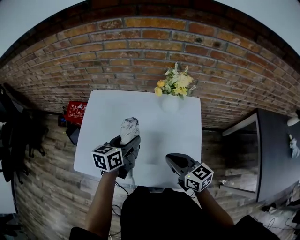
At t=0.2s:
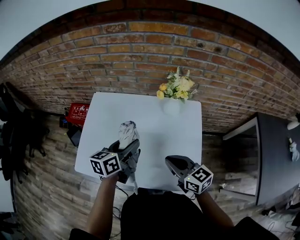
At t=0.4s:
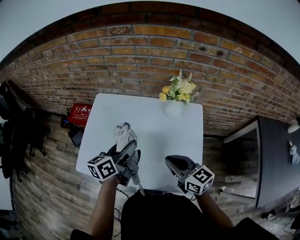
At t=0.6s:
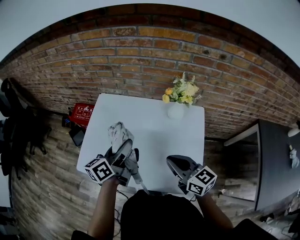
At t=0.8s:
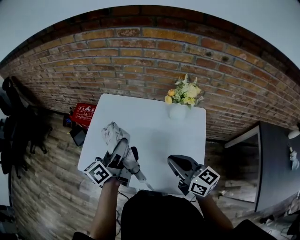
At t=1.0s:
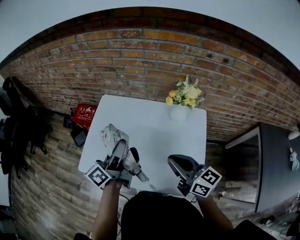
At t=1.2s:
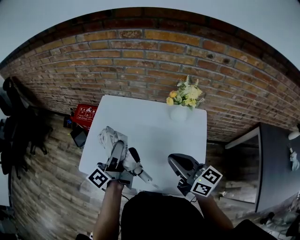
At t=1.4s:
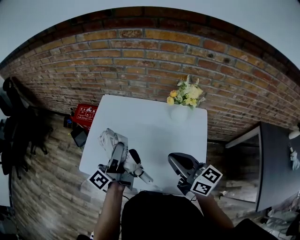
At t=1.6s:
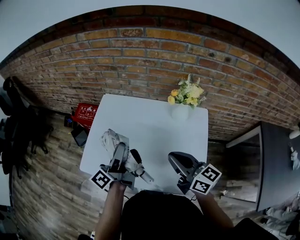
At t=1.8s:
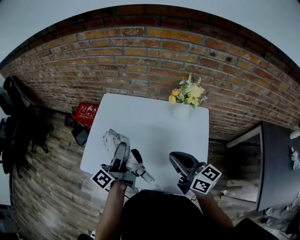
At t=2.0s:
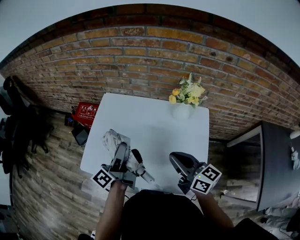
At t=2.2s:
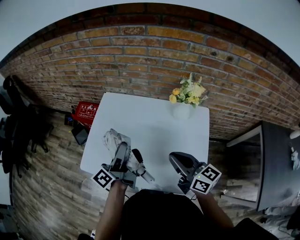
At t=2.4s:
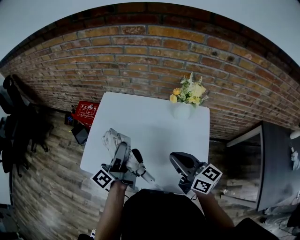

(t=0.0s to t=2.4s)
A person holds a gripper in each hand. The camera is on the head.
t=0.0s - t=1.2s: The right gripper moves upward, approximately 10 cm. Meanwhile the left gripper goes approximately 15 cm to the left and upward, and tilts its fingers some 40 degrees upward.
t=1.2s - t=2.4s: The grippers stay close to where they were, moving slightly.

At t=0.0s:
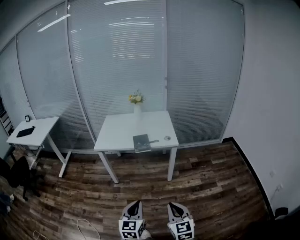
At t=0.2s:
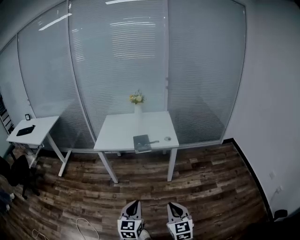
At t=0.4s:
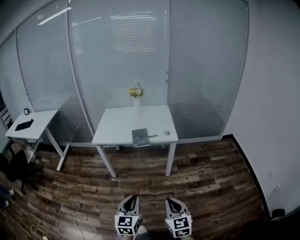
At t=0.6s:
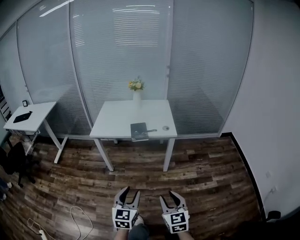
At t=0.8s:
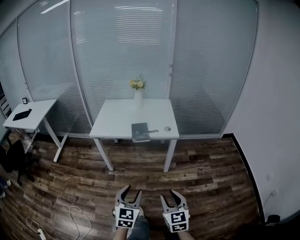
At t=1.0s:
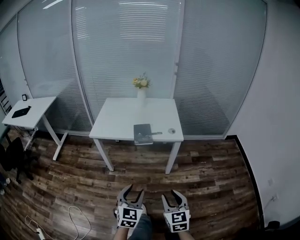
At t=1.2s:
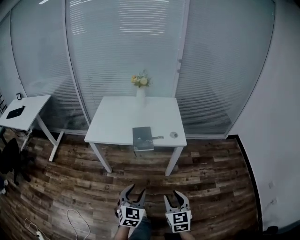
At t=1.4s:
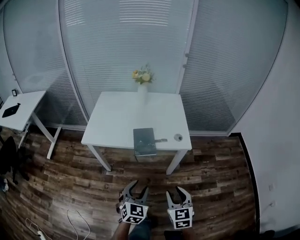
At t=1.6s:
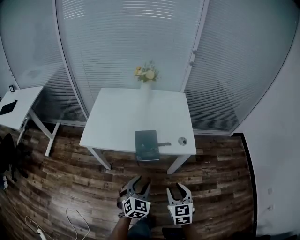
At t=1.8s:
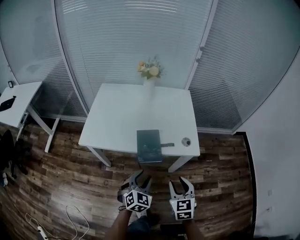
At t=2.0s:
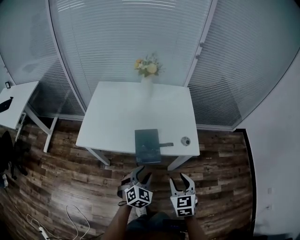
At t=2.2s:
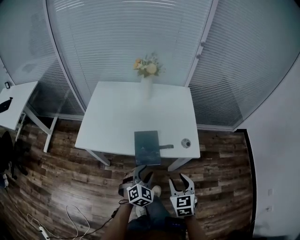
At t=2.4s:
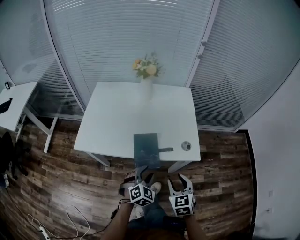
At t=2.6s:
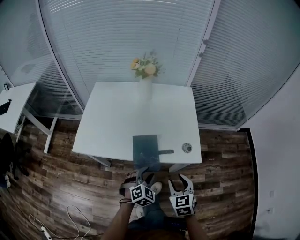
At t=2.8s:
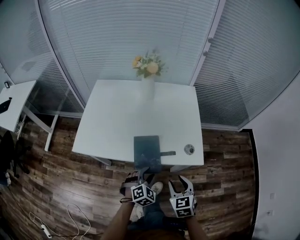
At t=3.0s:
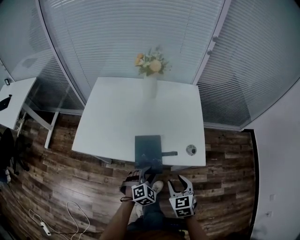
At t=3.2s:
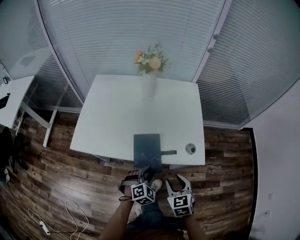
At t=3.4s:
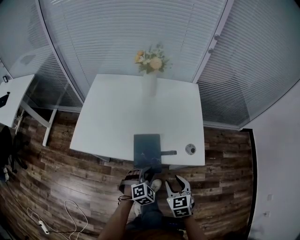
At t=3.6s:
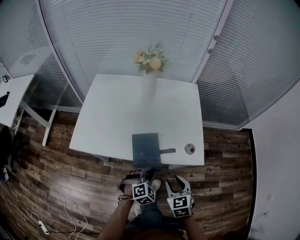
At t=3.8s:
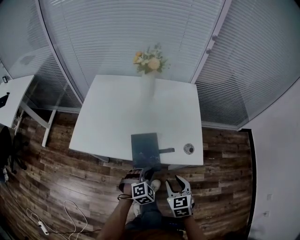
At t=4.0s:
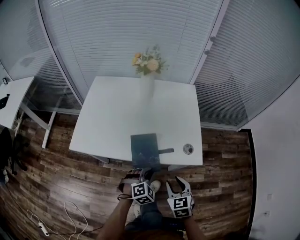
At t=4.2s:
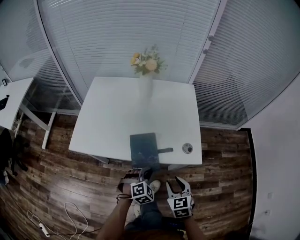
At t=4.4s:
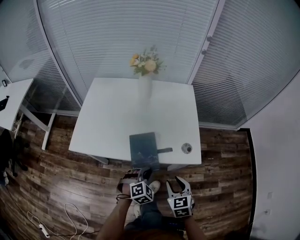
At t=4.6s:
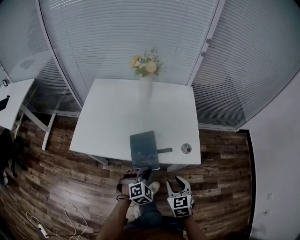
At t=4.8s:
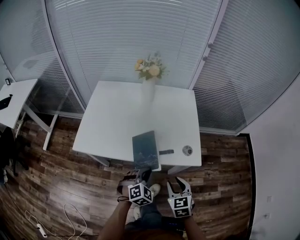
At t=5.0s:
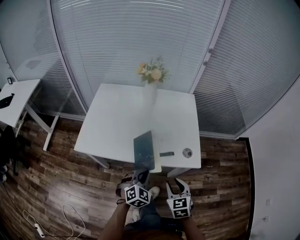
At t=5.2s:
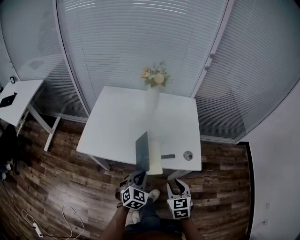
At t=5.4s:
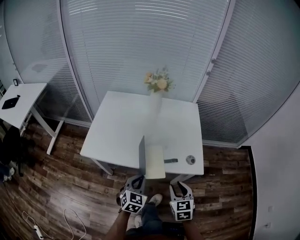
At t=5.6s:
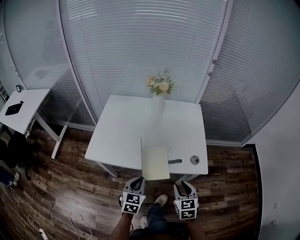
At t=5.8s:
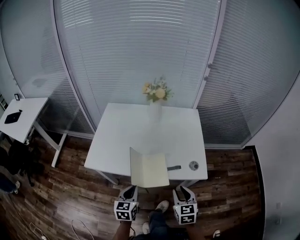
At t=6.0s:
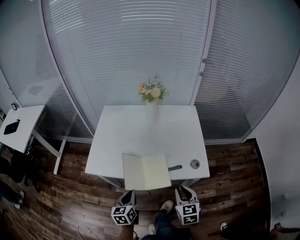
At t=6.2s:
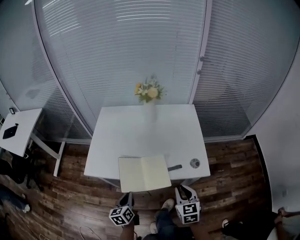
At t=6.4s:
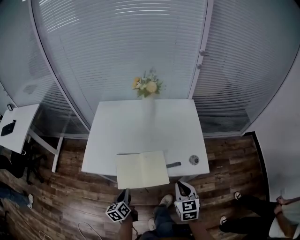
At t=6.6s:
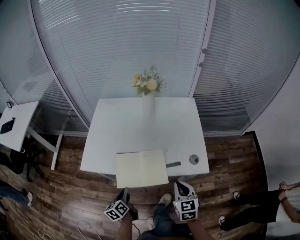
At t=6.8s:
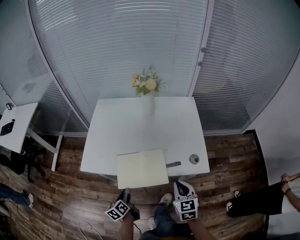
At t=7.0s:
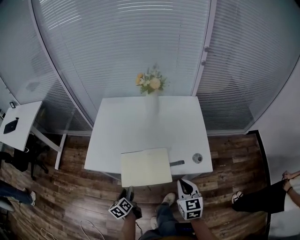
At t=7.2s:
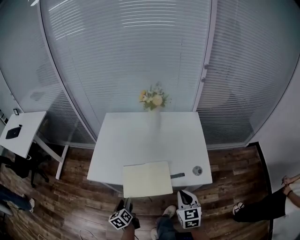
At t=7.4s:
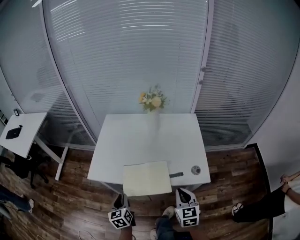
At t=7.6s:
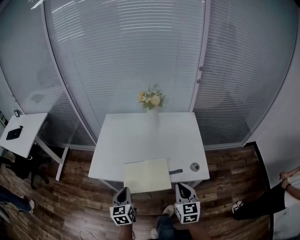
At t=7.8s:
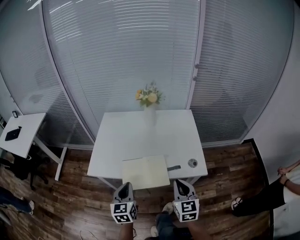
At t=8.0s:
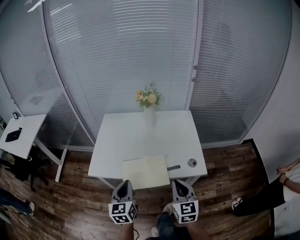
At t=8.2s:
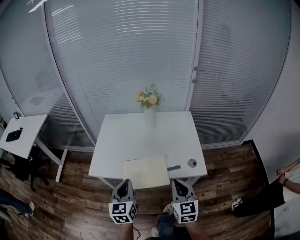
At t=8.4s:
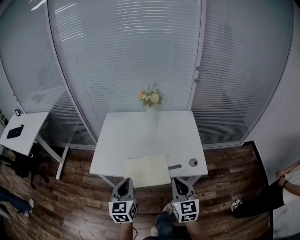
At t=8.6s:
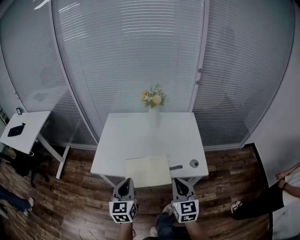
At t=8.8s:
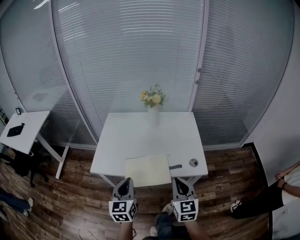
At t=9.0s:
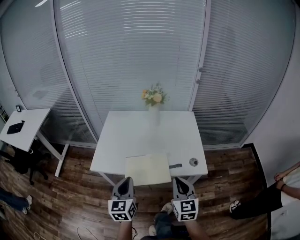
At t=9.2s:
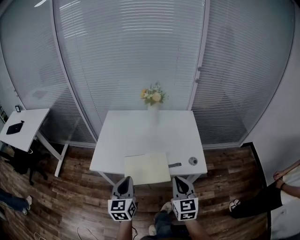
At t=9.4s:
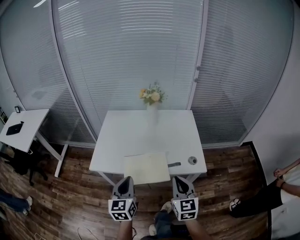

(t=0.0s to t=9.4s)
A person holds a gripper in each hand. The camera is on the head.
t=0.0s - t=1.6s: The two grippers go about 35 cm forward. The right gripper opens. The left gripper changes its angle by some 30 degrees, and opens up.
t=1.6s - t=3.2s: The two grippers go about 20 cm forward and downward. The left gripper turns by roughly 20 degrees.
t=3.2s - t=4.8s: The left gripper travels upward by approximately 5 cm, and closes.
t=4.8s - t=6.2s: The left gripper is displaced to the left by about 20 cm, and rolls counterclockwise, seen from behind, by approximately 70 degrees.
t=6.2s - t=7.8s: The right gripper goes some 10 cm upward, while the left gripper moves upward, approximately 15 cm, rotates about 20 degrees, and opens, then closes again.
t=7.8s - t=9.4s: The left gripper is displaced upward by approximately 5 cm.

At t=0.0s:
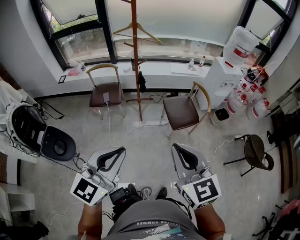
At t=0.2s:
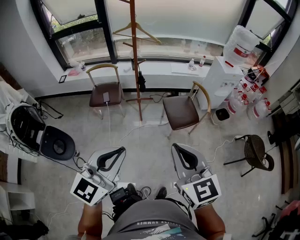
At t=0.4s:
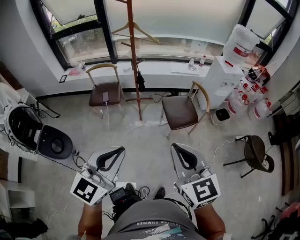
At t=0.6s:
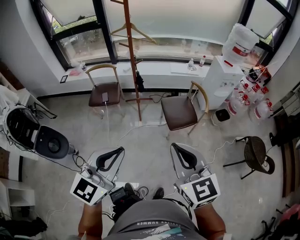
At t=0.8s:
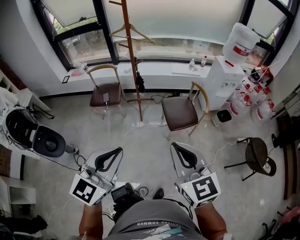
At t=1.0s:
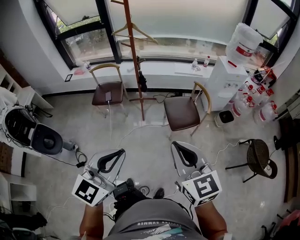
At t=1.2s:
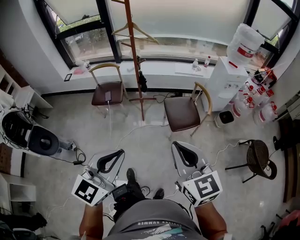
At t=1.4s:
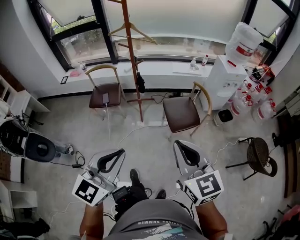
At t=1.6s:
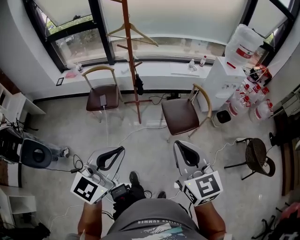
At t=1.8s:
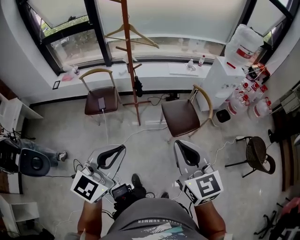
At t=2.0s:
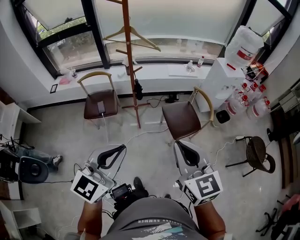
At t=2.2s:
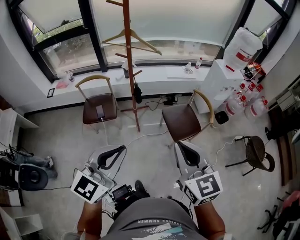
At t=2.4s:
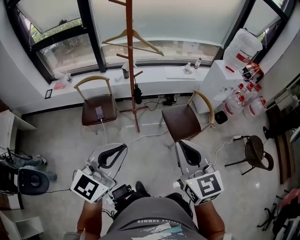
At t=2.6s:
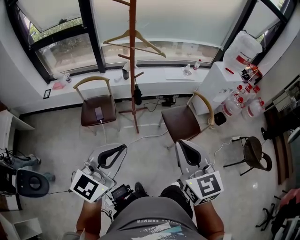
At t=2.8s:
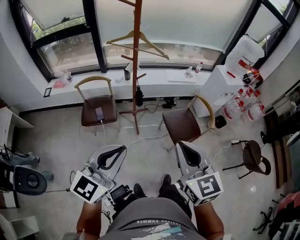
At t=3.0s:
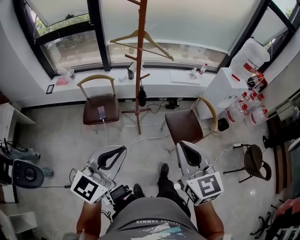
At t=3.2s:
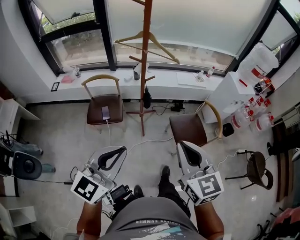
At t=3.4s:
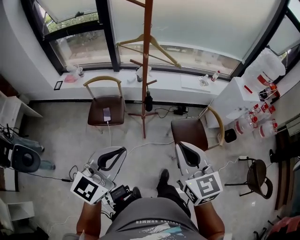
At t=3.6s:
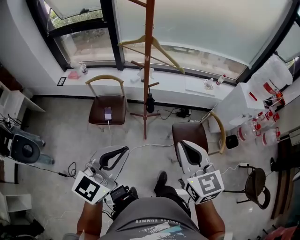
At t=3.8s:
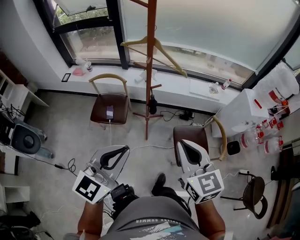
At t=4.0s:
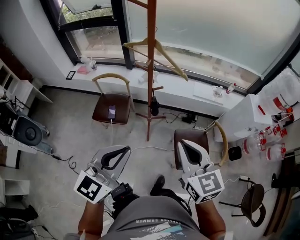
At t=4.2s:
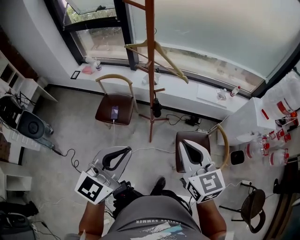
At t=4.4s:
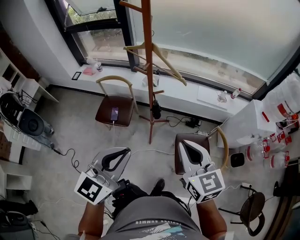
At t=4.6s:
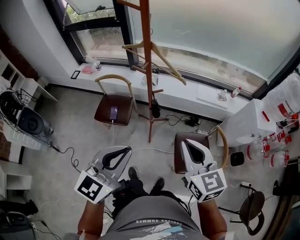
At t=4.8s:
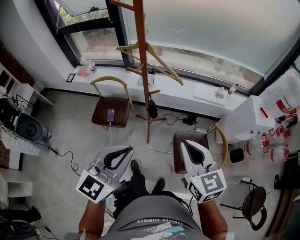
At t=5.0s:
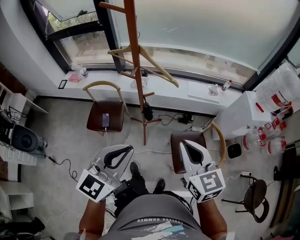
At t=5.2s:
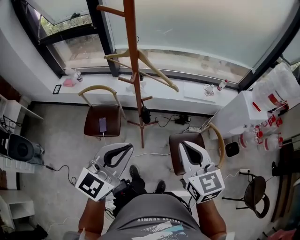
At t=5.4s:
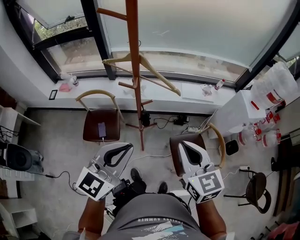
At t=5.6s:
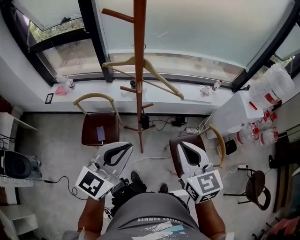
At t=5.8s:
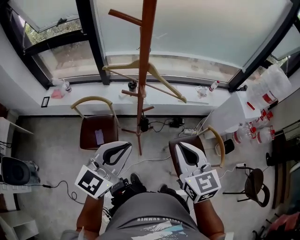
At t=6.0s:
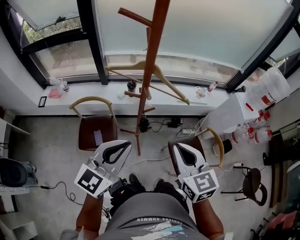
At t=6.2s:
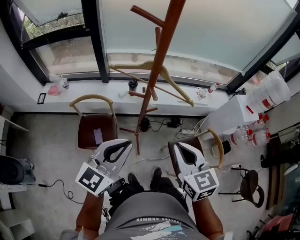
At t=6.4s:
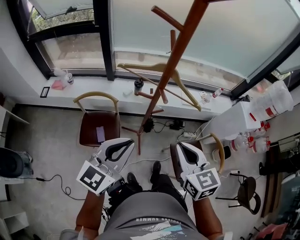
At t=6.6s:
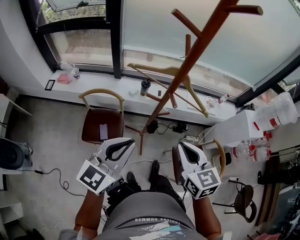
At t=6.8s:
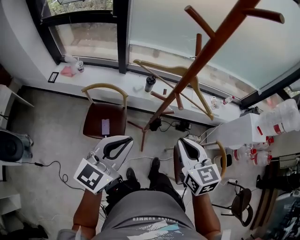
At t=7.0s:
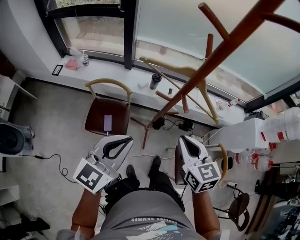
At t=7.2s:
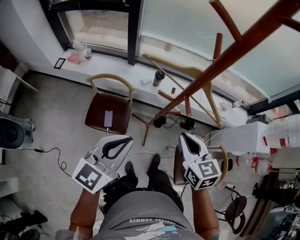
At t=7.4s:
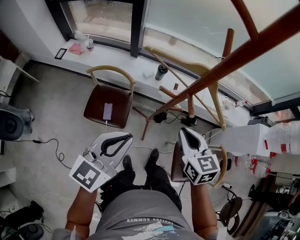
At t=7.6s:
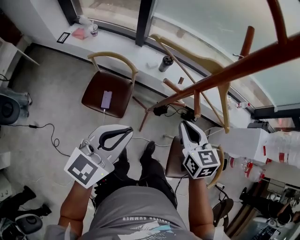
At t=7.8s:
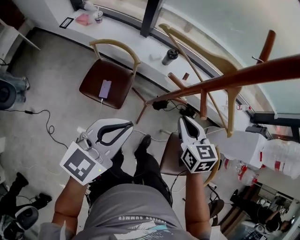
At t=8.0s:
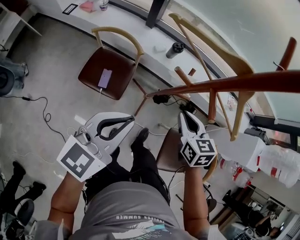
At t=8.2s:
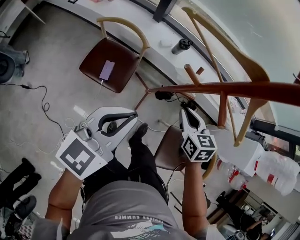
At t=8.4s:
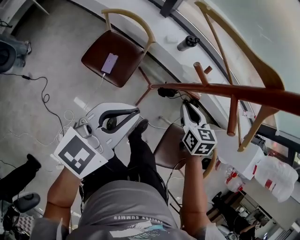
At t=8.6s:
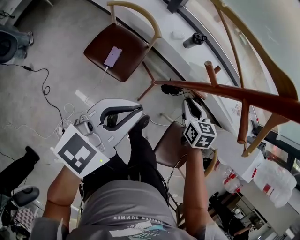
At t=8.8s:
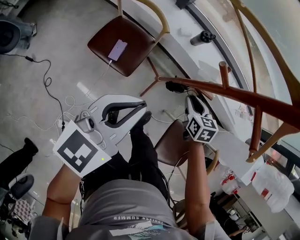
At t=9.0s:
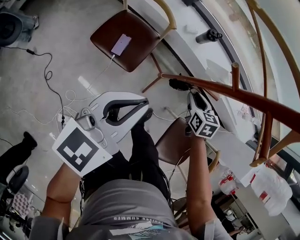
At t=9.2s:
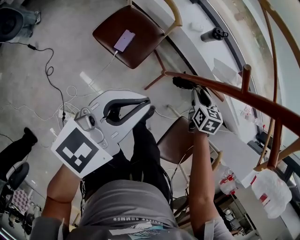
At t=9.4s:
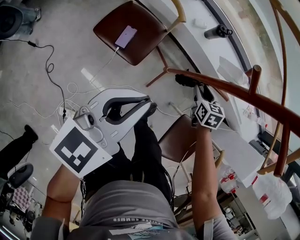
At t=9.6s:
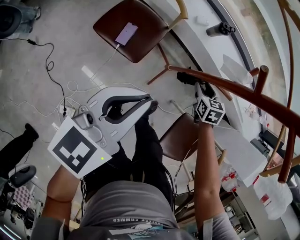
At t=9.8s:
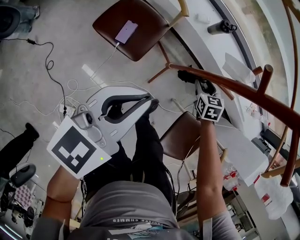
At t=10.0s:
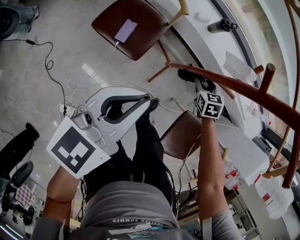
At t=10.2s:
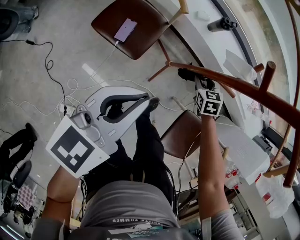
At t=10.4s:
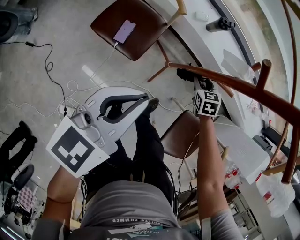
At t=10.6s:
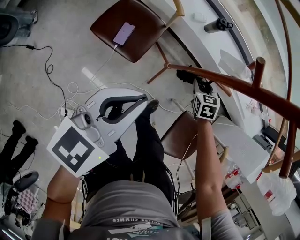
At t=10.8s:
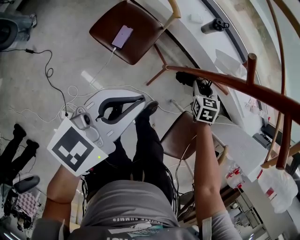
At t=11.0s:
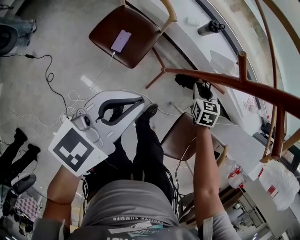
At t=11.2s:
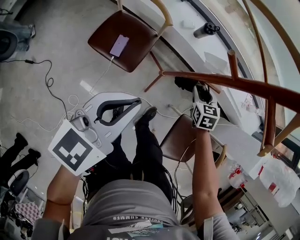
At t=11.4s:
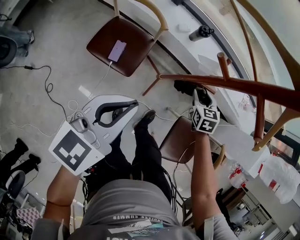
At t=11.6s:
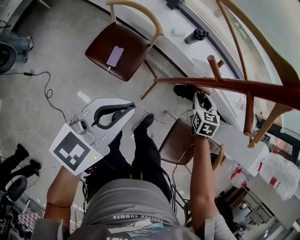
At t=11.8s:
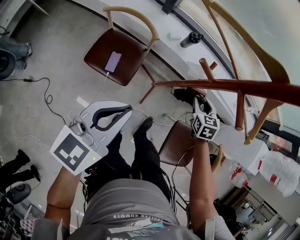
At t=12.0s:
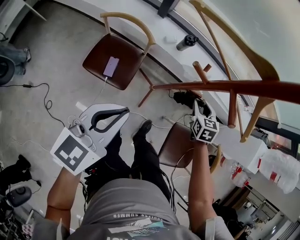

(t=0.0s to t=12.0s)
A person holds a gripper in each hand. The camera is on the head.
t=0.0s - t=1.6s: The left gripper travels forward by some 10 cm; the right gripper heads forward and to the right, covering approximately 10 cm.
t=1.6s - t=3.0s: Both grippers move to the left and forward, roughly 20 cm.
t=3.0s - t=4.4s: Both grippers travel together forward and to the right, roughly 25 cm. The left gripper rotates about 20 degrees, while the right gripper swivels about 20 degrees.
t=4.4s - t=6.0s: The left gripper moves forward and to the left, roughly 25 cm, and turns by some 20 degrees, while the right gripper is displaced to the left and forward by roughly 20 cm.
t=6.0s - t=7.6s: The right gripper moves forward, downward and to the left, approximately 25 cm; the left gripper heads downward, to the left and forward, covering some 15 cm, and rotates about 20 degrees.
t=7.6s - t=9.0s: The right gripper shifts some 30 cm downward, turns by some 20 degrees, and opens its fingers; the left gripper moves downward, some 10 cm.
t=9.0s - t=10.4s: The left gripper goes approximately 5 cm downward. The right gripper is displaced downward by about 10 cm.
t=10.4s - t=12.0s: The right gripper shifts roughly 20 cm upward and to the right, and swivels about 20 degrees. The left gripper heads upward, covering about 10 cm.
